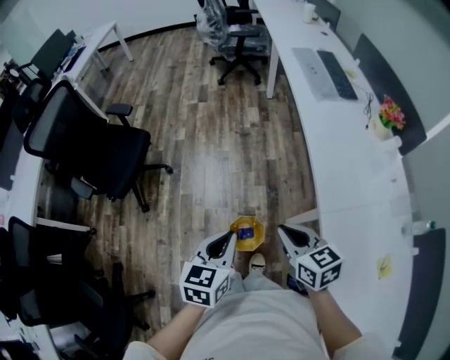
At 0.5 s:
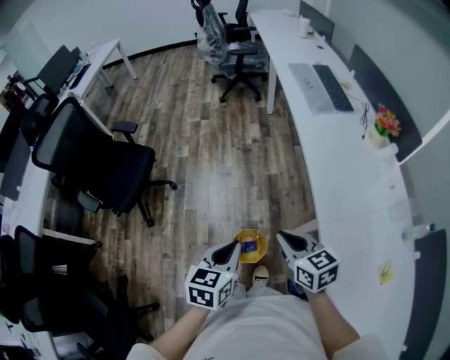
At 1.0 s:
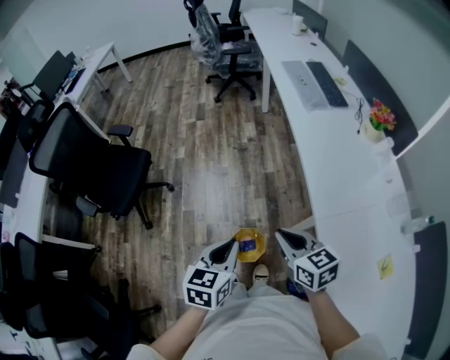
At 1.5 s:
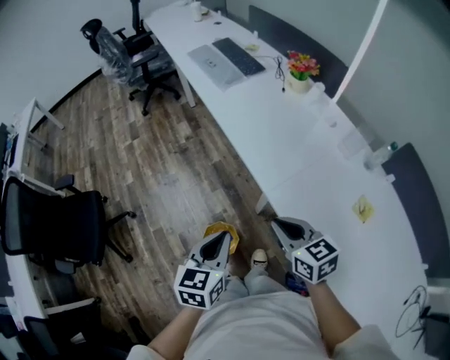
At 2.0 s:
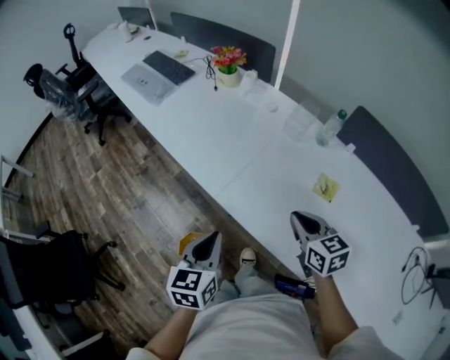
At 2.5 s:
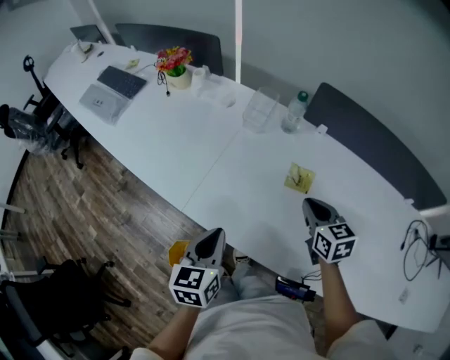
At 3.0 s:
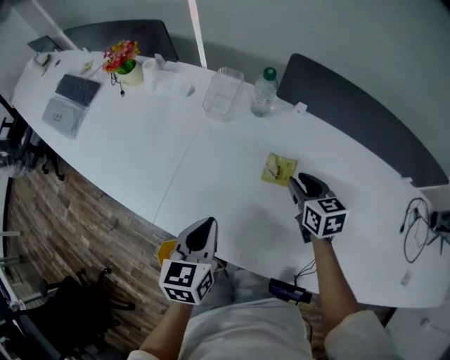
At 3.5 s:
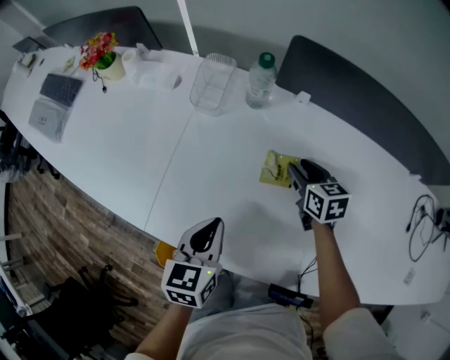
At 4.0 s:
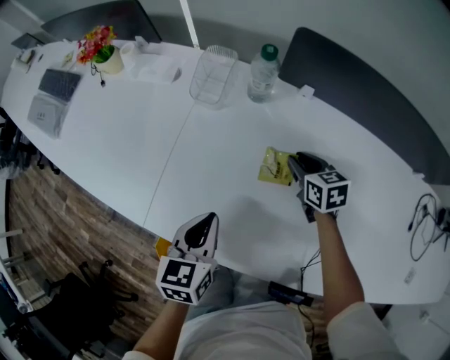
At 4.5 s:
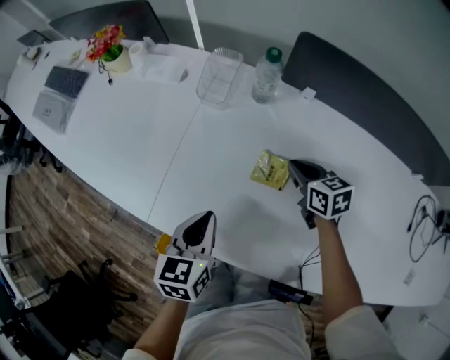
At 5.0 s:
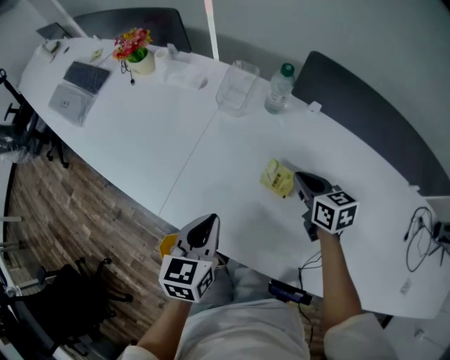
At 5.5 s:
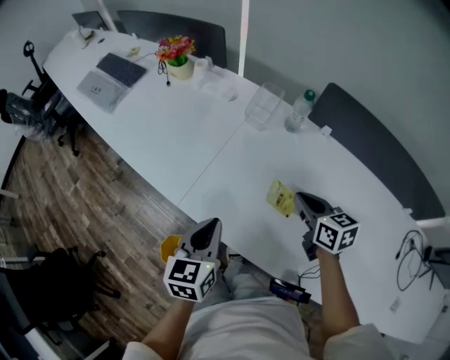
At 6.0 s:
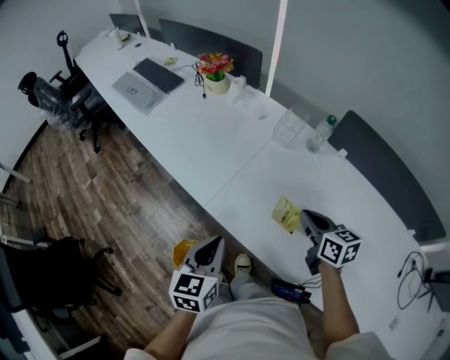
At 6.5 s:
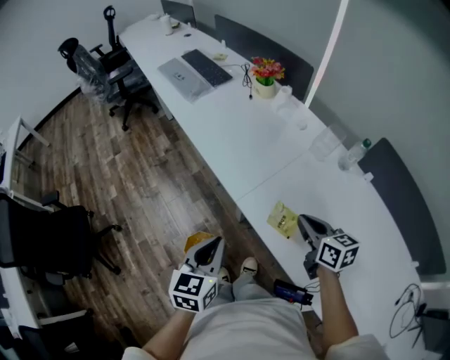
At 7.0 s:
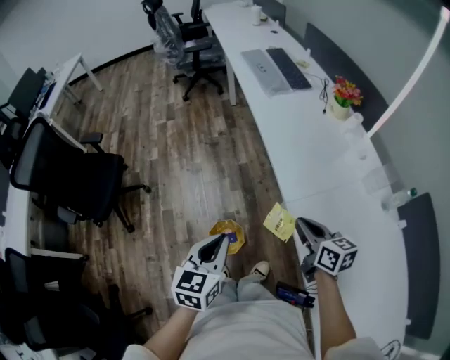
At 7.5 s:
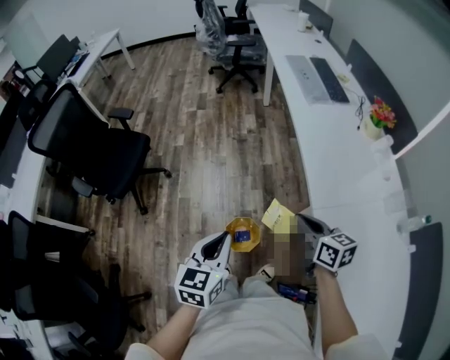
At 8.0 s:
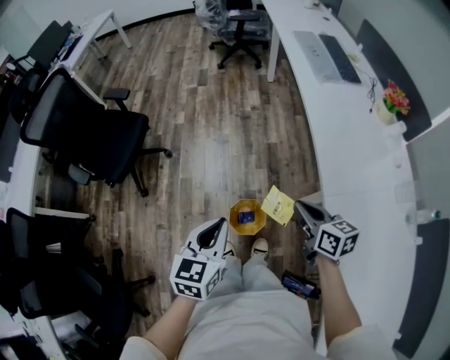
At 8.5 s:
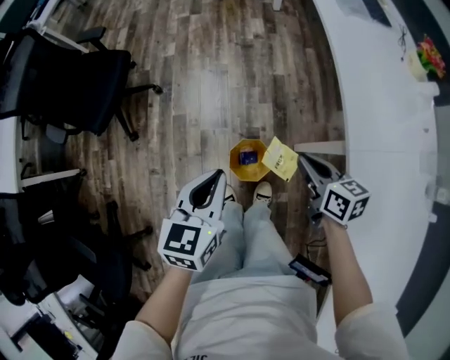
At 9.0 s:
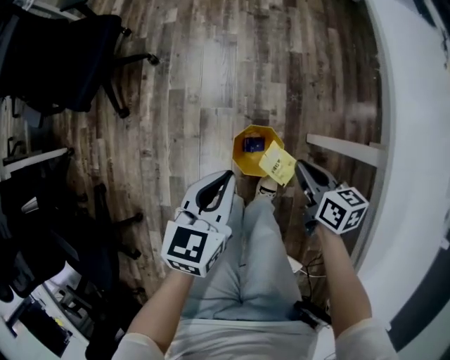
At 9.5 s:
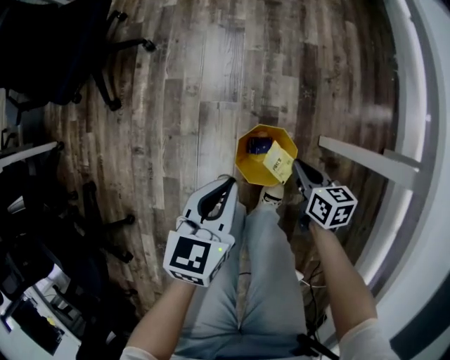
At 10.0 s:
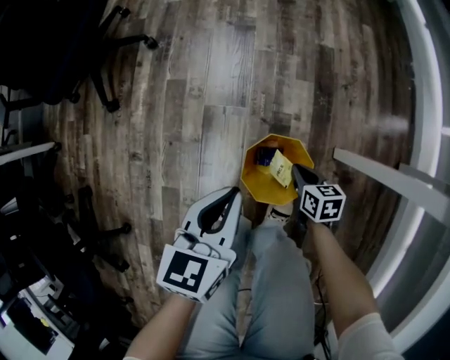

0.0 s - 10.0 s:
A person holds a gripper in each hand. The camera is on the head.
0.0 s - 2.0 s: The left gripper ends up roughly 25 cm from where it was, and swivels some 40 degrees. Meanwhile the right gripper shifts by approximately 35 cm, and swivels some 50 degrees.
2.0 s - 4.0 s: The right gripper ends up about 35 cm from where it was, changes its angle by roughly 20 degrees, and opens its fingers; the left gripper ends up approximately 25 cm from where it was, and rotates roughly 20 degrees.
4.0 s - 6.0 s: The right gripper moves upward, to the left and backward, roughly 25 cm, turns by some 20 degrees, and closes its fingers, while the left gripper travels to the left, backward and upward by approximately 20 cm, and swivels about 20 degrees.
6.0 s - 8.0 s: The left gripper moves some 35 cm, and turns by about 40 degrees. Meanwhile the right gripper ends up approximately 40 cm from where it was, and swivels about 50 degrees.
8.0 s - 10.0 s: The two grippers go about 50 cm downward. The right gripper turns by about 30 degrees.

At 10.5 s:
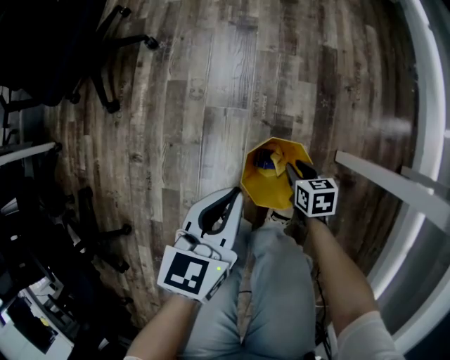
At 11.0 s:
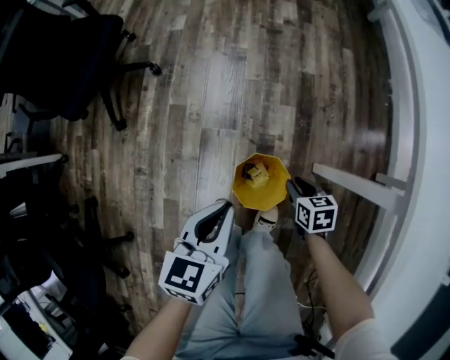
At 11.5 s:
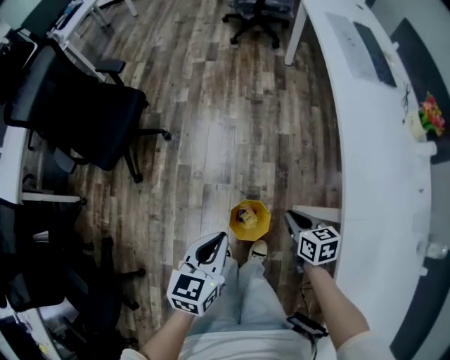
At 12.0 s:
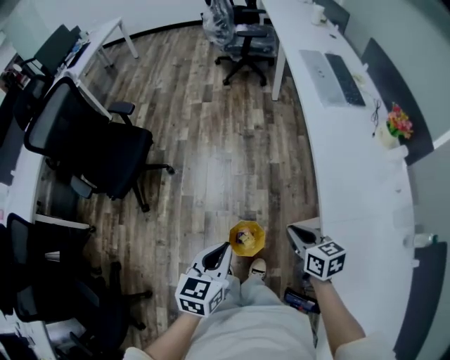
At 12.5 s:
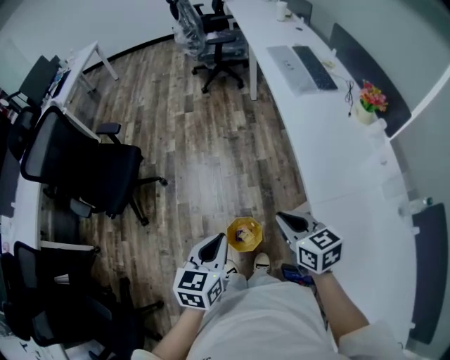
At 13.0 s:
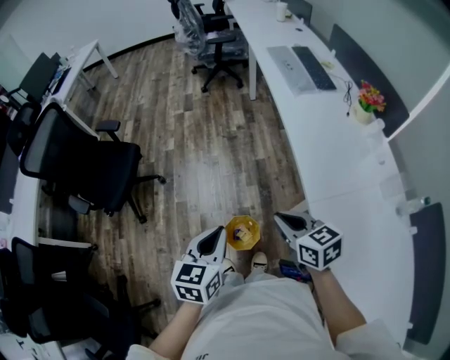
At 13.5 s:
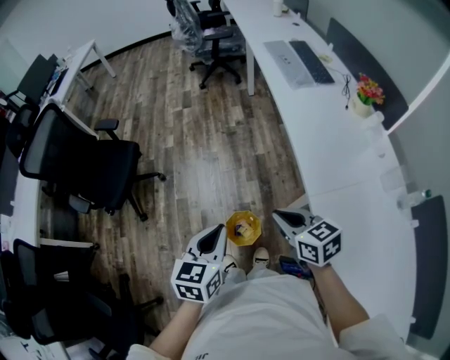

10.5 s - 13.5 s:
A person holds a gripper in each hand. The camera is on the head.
10.5 s - 12.0 s: The left gripper goes approximately 40 cm upward. The right gripper heads upward, covering some 60 cm, turns by some 20 degrees, and closes its fingers.
12.0 s - 13.5 s: The right gripper goes about 10 cm upward. The left gripper ends up approximately 5 cm from where it was.

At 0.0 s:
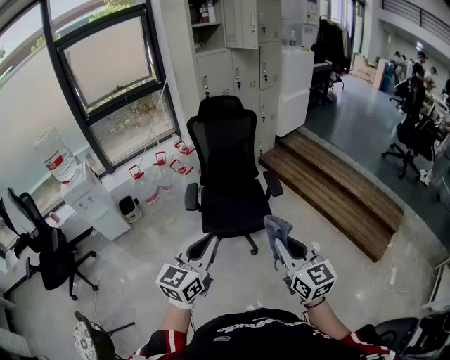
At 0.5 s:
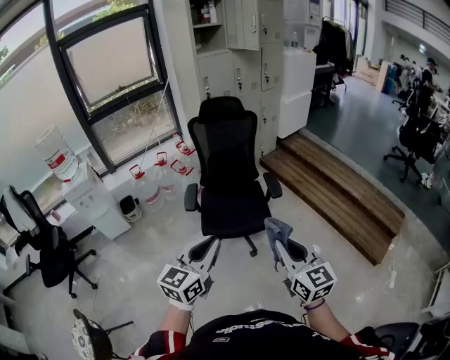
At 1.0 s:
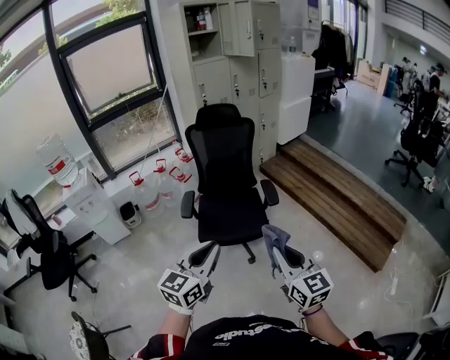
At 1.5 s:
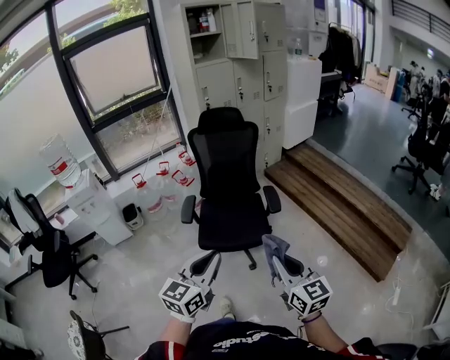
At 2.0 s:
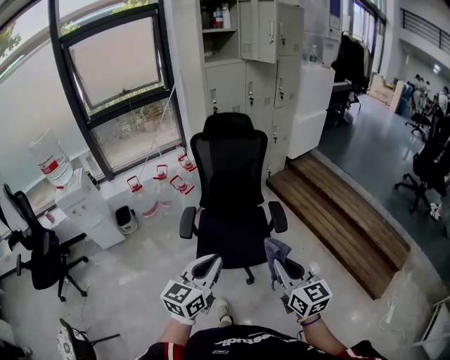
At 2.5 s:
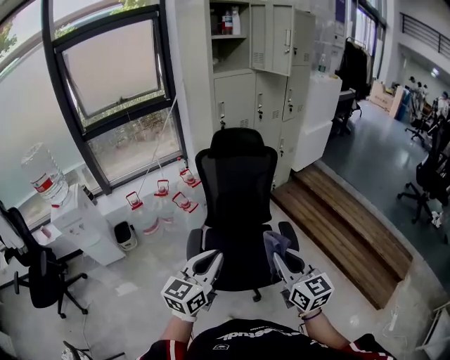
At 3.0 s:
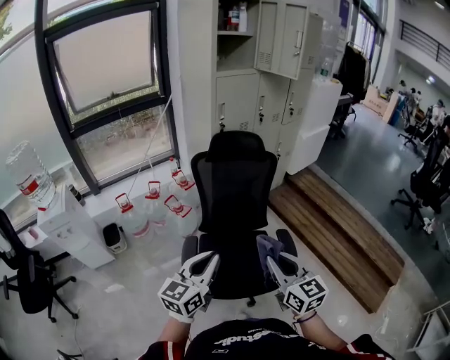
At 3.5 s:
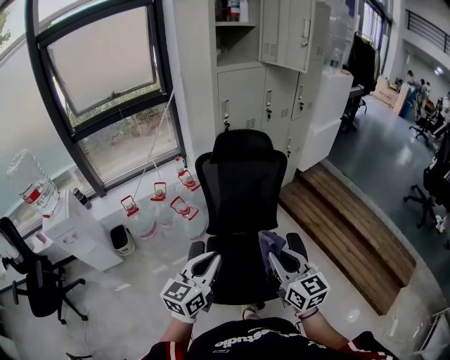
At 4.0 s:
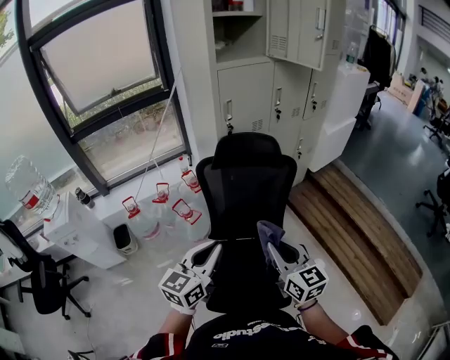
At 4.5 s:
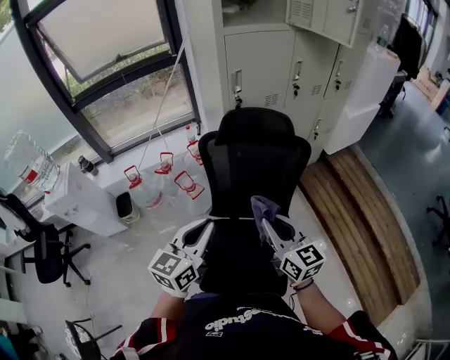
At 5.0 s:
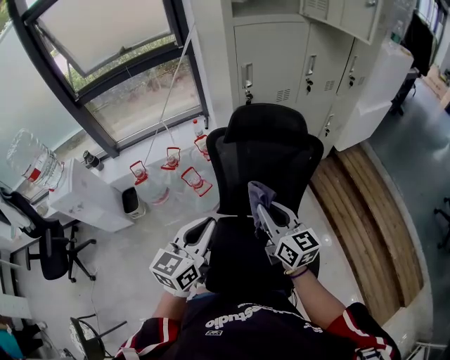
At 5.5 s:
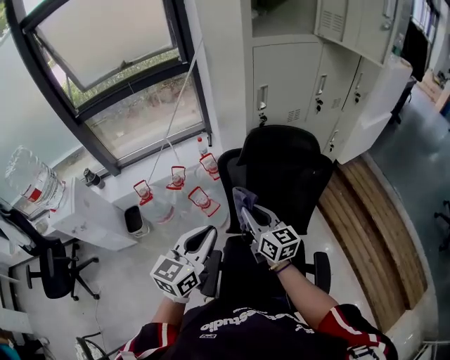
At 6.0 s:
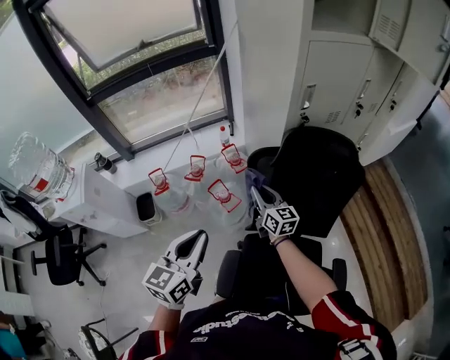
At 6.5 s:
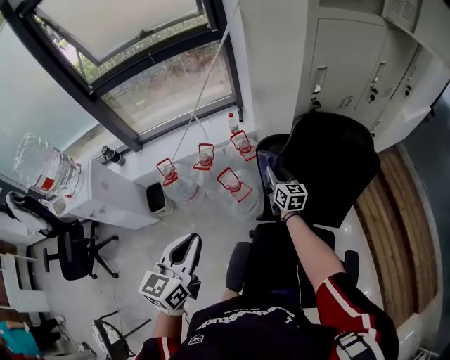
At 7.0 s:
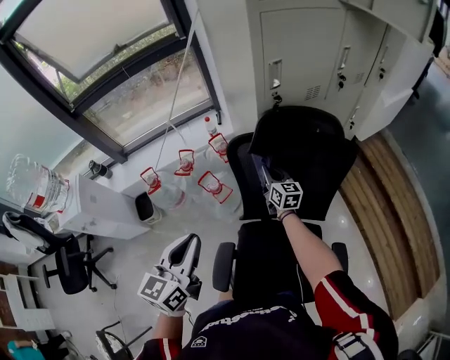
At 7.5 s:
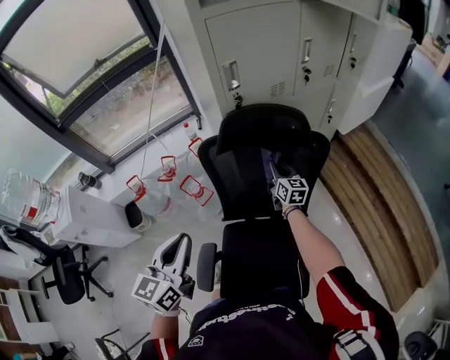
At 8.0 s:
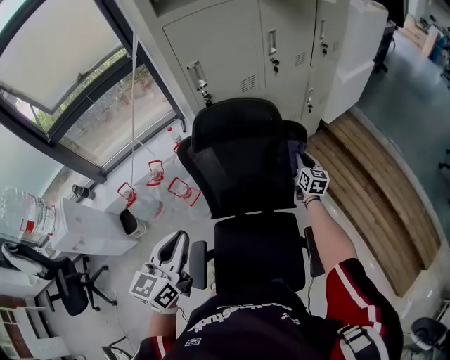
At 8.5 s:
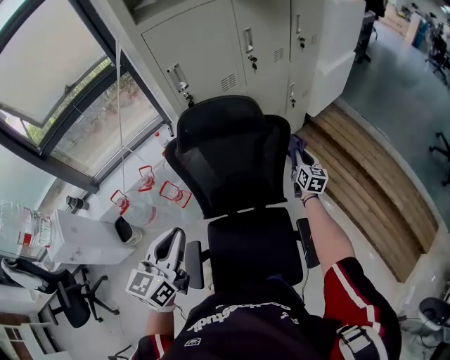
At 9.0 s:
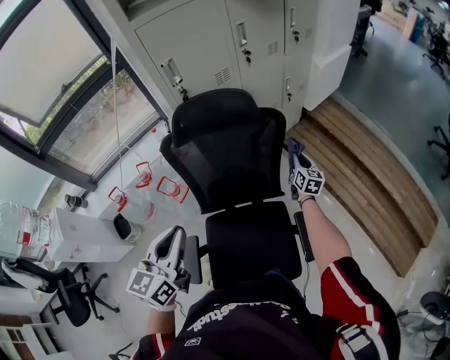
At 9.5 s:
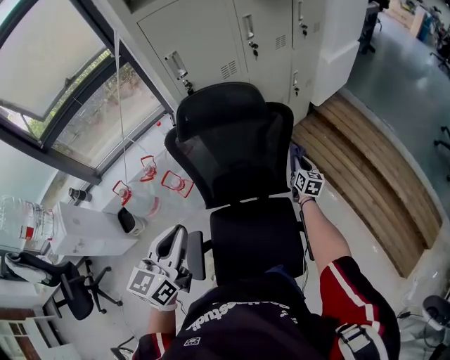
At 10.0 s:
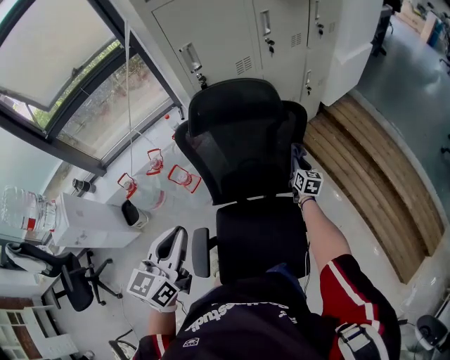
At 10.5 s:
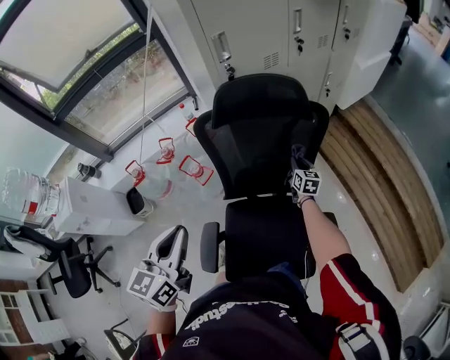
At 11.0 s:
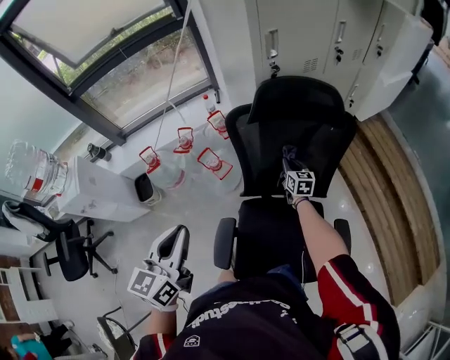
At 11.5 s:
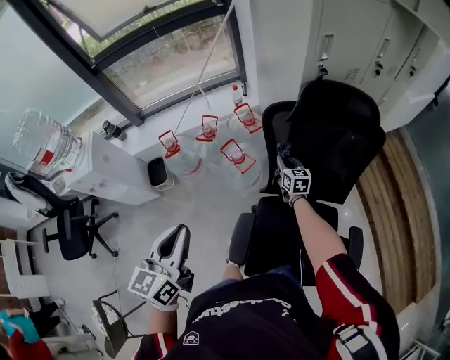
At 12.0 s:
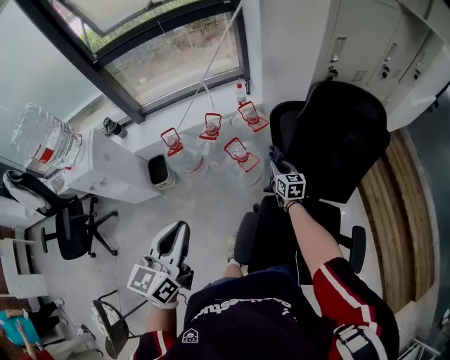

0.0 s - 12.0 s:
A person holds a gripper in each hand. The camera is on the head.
0.0 s - 2.0 s: Both grippers move forward, approximately 20 cm.
2.0 s - 4.0 s: The pair of grippers is taken forward, approximately 50 cm.
4.0 s - 6.0 s: The left gripper travels to the left and forward by approximately 30 cm, while the right gripper heads forward, to the left and downward, covering approximately 50 cm.
6.0 s - 8.0 s: The right gripper travels to the right by some 50 cm, and changes its angle by roughly 30 degrees. Meanwhile the left gripper moves to the right, some 20 cm.
8.0 s - 10.0 s: The right gripper is displaced downward and backward by about 10 cm.
10.0 s - 12.0 s: The left gripper travels to the left by approximately 30 cm. The right gripper shifts roughly 50 cm to the left, and changes its angle by roughly 30 degrees.

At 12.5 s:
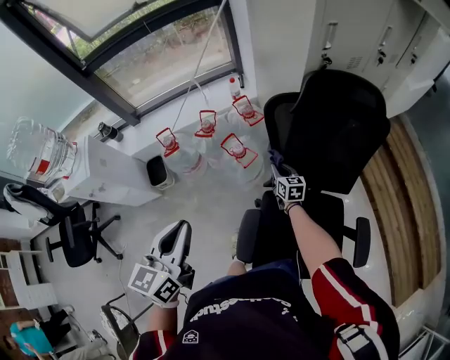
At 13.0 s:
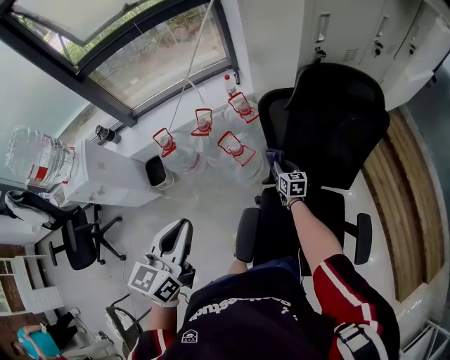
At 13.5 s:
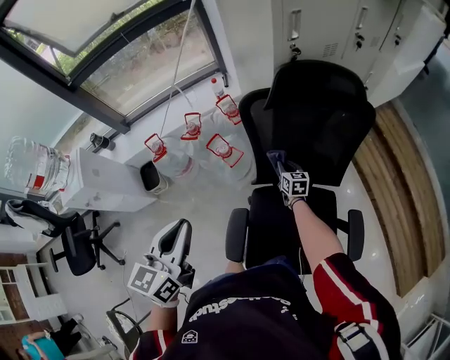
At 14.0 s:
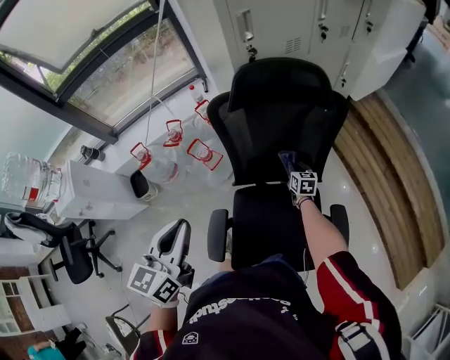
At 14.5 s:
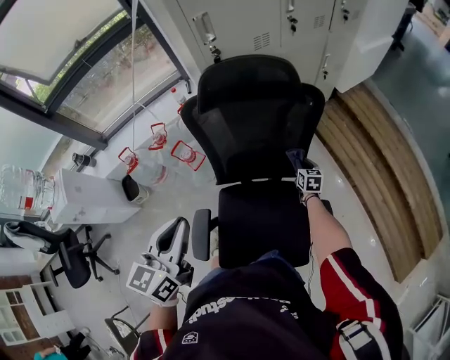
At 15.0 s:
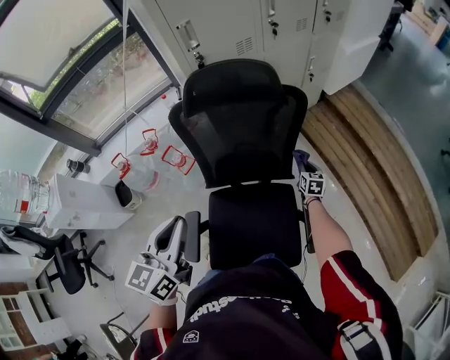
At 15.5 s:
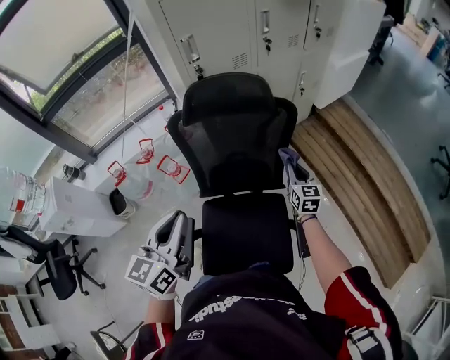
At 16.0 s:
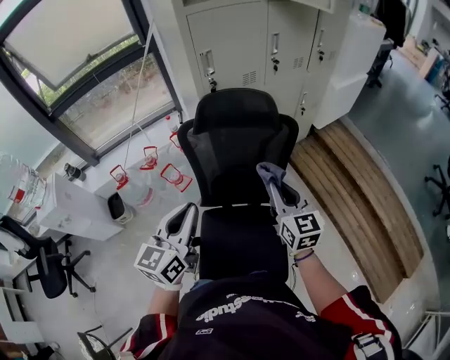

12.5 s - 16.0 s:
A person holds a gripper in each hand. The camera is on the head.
12.5 s - 14.5 s: The left gripper moves to the right, about 25 cm. The right gripper moves to the right, approximately 40 cm, and turns by about 20 degrees.
14.5 s - 16.0 s: The right gripper moves upward and backward, roughly 40 cm, and changes its angle by approximately 30 degrees, while the left gripper shifts approximately 5 cm to the right.
